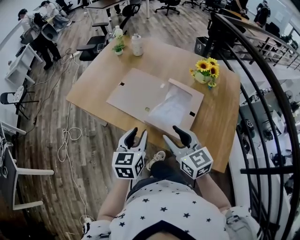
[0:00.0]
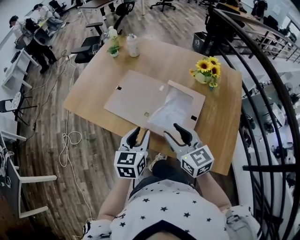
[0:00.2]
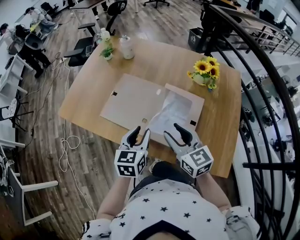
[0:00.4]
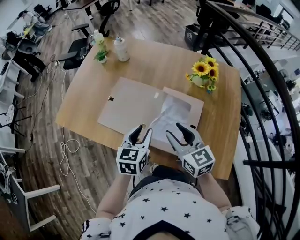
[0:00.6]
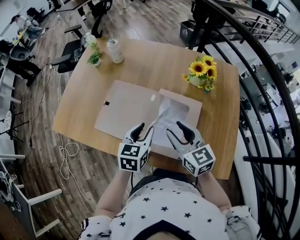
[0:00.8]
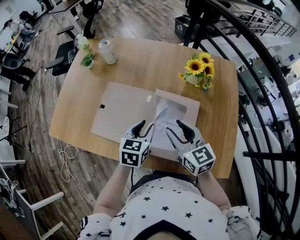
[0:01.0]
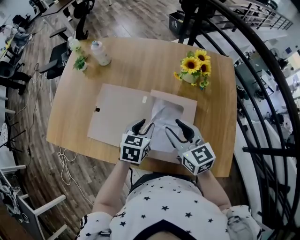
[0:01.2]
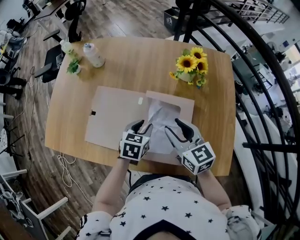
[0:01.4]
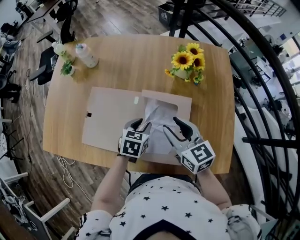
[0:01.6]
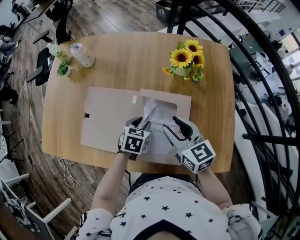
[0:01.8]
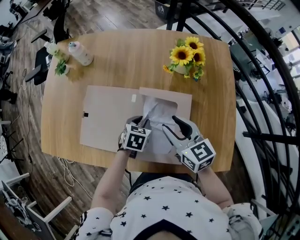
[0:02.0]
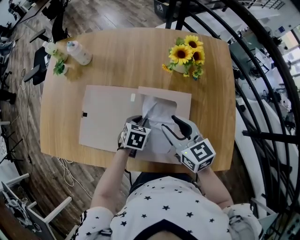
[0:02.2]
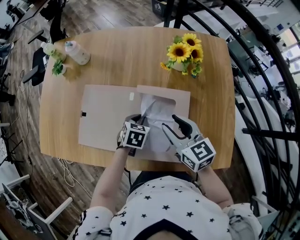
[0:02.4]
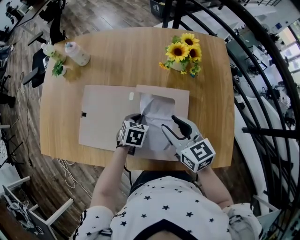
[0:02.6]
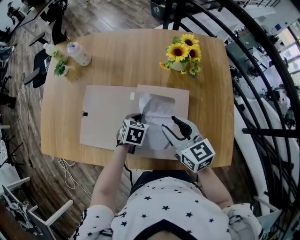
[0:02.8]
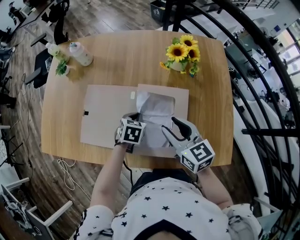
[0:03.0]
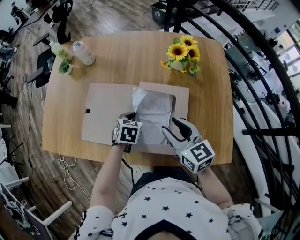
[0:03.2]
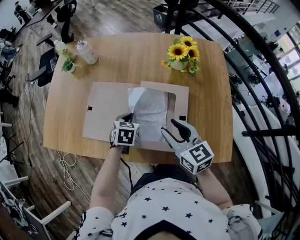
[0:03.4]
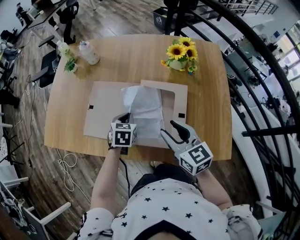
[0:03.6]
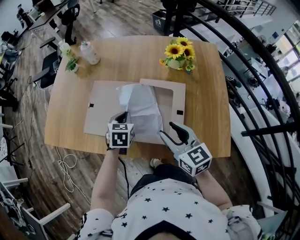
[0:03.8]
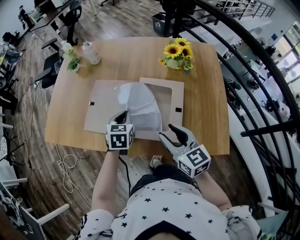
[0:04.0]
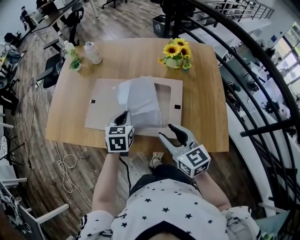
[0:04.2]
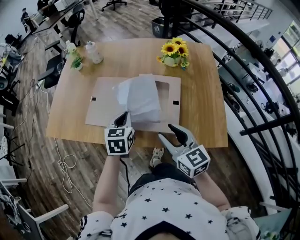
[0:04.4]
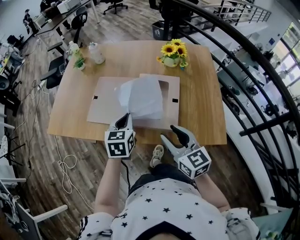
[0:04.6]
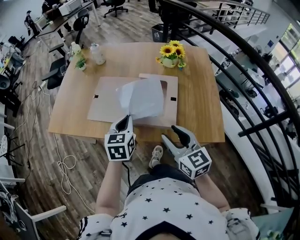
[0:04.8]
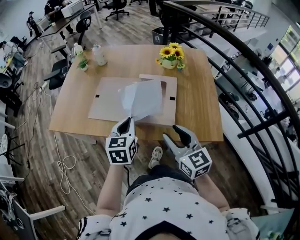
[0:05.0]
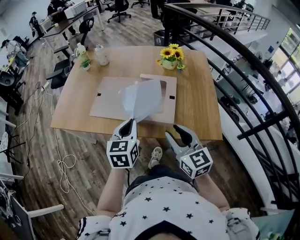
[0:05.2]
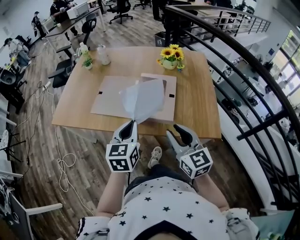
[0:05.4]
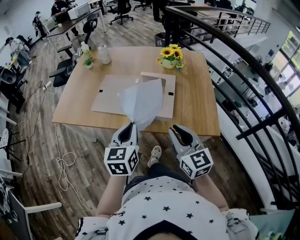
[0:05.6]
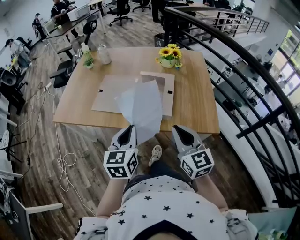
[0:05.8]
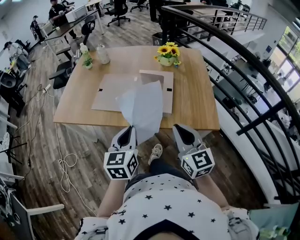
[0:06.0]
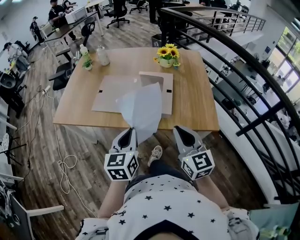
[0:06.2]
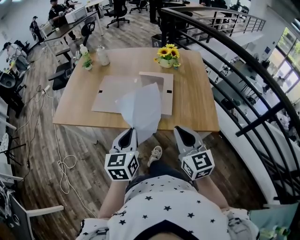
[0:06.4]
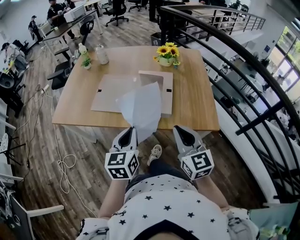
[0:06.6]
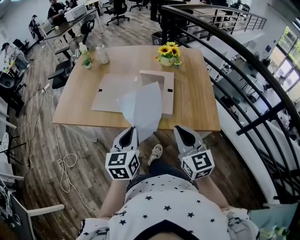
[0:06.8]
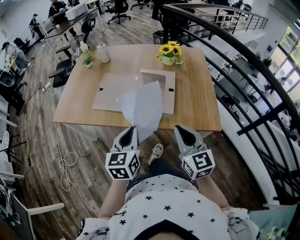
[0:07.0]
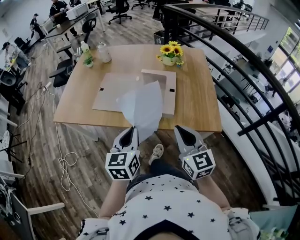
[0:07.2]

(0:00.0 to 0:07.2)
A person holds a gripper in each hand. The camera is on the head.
0:00.0 - 0:01.4: The left gripper moves forward, downward and to the right, roughly 30 cm, and turns by roughly 40 degrees; the right gripper goes some 20 cm forward, and turns by about 20 degrees.
0:01.4 - 0:02.8: The left gripper heads downward, covering roughly 5 cm, and closes up.
0:02.8 - 0:04.4: The left gripper is displaced upward, backward and to the left by roughly 20 cm, and swivels approximately 30 degrees; the right gripper heads backward, covering some 15 cm.
0:04.4 - 0:05.8: The right gripper goes approximately 15 cm backward, and closes. The left gripper shifts some 20 cm backward.
0:05.8 - 0:07.2: The grippers move only a little.

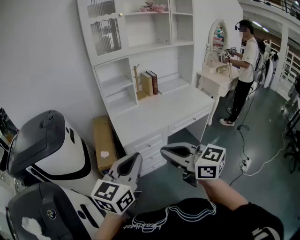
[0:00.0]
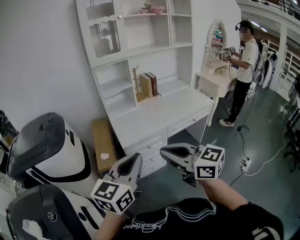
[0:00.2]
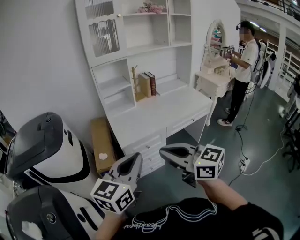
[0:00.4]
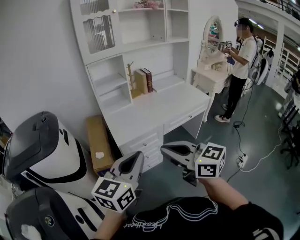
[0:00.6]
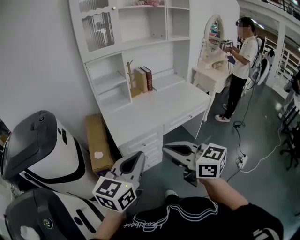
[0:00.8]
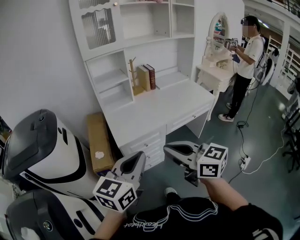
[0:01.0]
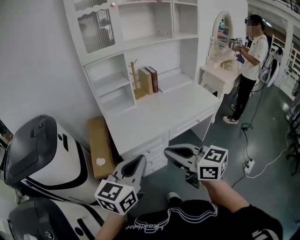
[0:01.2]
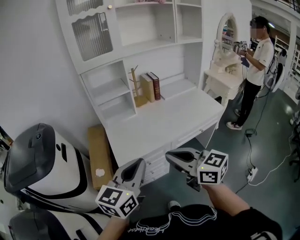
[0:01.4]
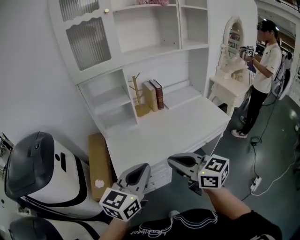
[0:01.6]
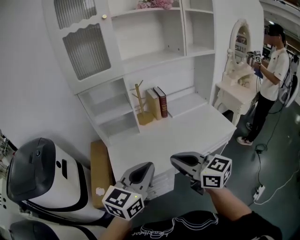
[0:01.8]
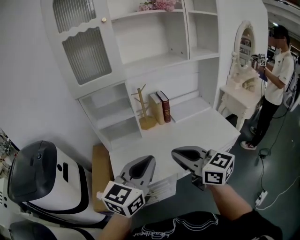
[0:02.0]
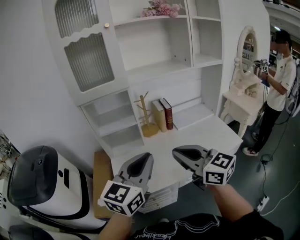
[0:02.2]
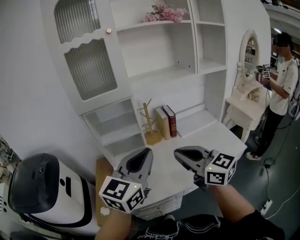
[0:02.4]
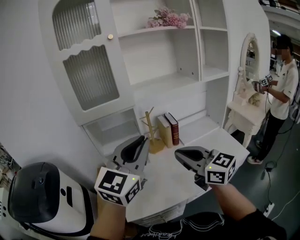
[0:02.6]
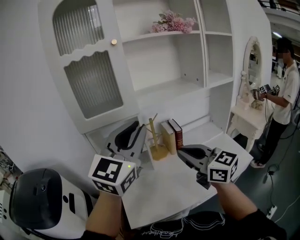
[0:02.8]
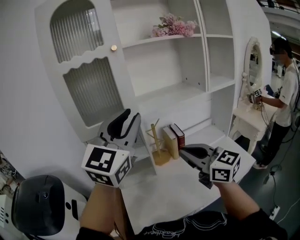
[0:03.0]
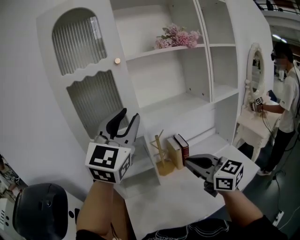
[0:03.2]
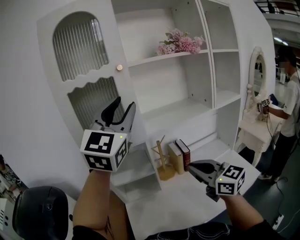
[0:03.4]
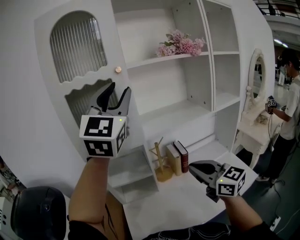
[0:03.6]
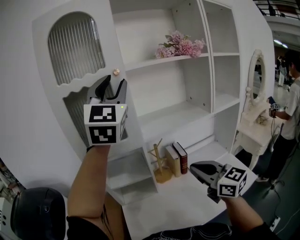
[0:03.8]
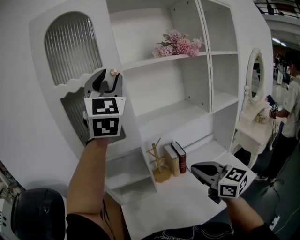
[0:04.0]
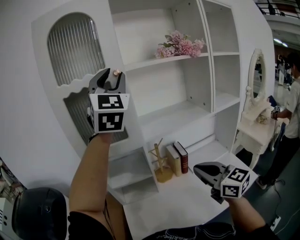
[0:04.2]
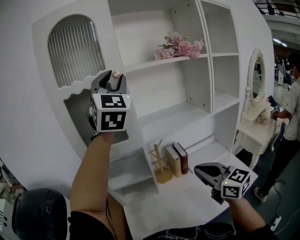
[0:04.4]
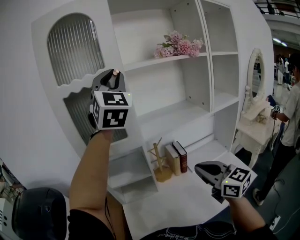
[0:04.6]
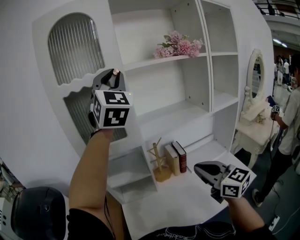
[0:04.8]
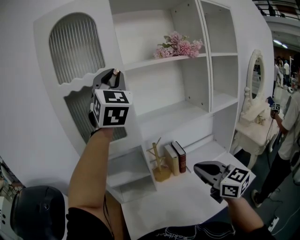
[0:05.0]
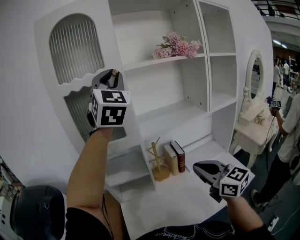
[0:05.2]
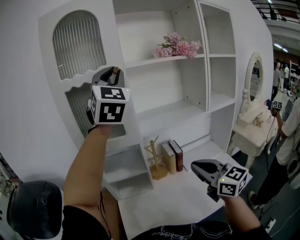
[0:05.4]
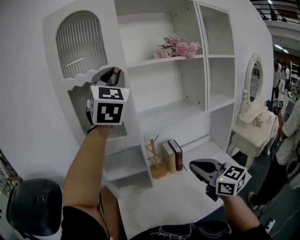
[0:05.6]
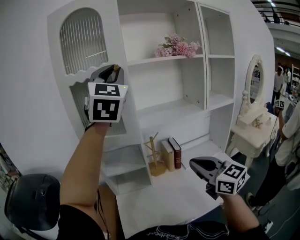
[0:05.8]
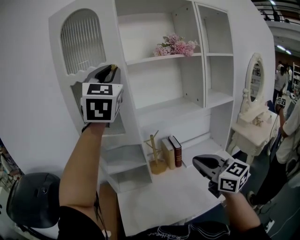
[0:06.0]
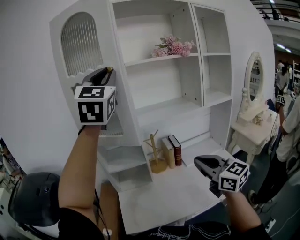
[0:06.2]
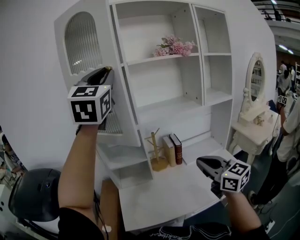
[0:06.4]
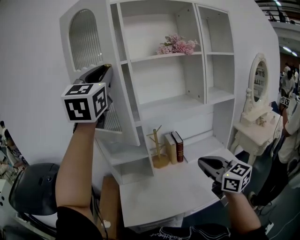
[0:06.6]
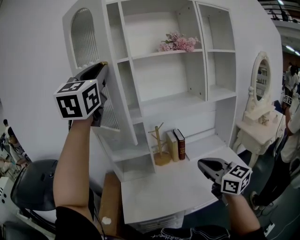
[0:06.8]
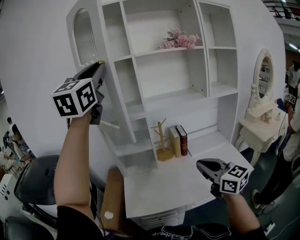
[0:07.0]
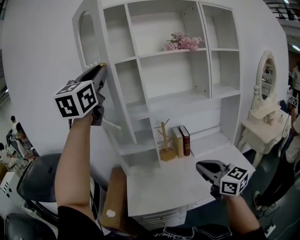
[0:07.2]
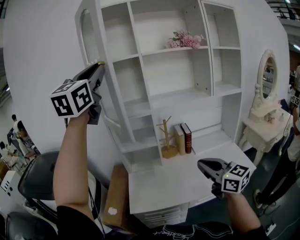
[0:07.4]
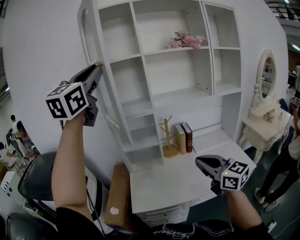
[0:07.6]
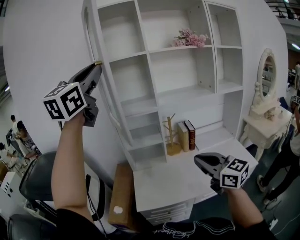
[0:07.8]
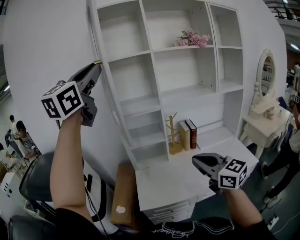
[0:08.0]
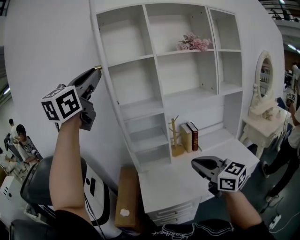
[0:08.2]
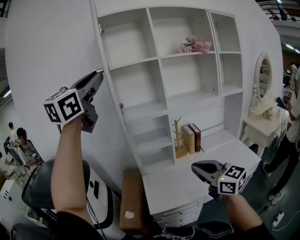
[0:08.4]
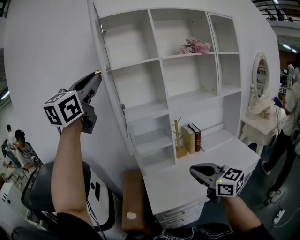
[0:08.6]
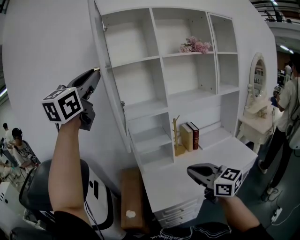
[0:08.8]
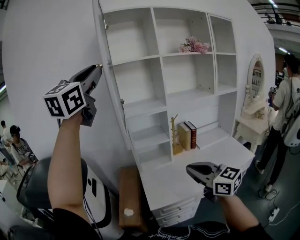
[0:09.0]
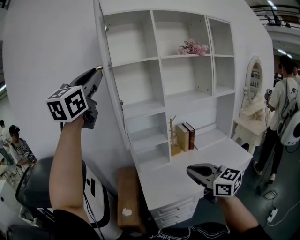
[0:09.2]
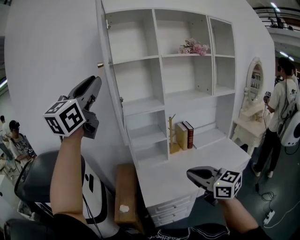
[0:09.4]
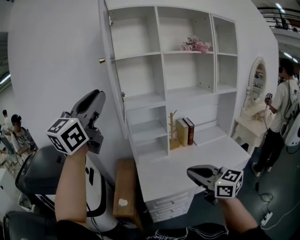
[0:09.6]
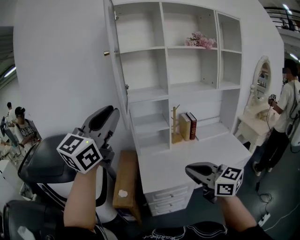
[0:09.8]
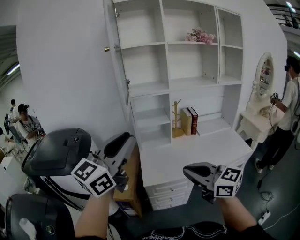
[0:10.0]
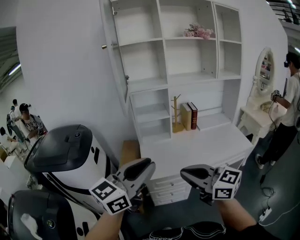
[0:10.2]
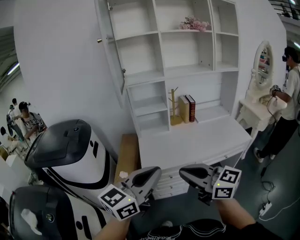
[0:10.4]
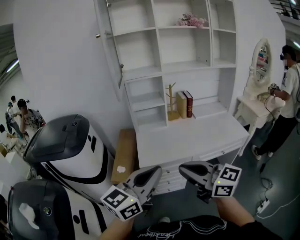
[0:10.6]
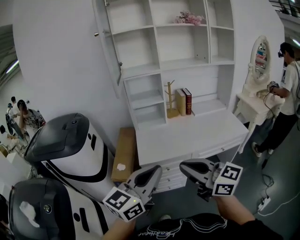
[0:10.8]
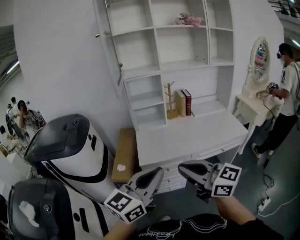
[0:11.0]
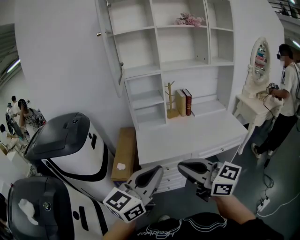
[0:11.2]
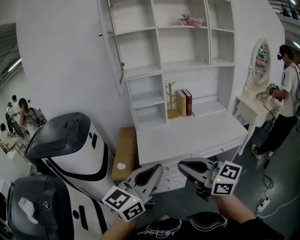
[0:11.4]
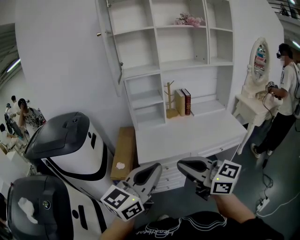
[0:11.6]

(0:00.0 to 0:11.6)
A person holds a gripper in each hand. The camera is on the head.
0:00.0 - 0:01.4: The grippers both shift forward and to the right by roughly 20 cm.
0:01.4 - 0:02.8: The left gripper heads forward and upward, covering about 40 cm, and swivels some 30 degrees, while the right gripper heads forward, covering approximately 35 cm.
0:02.8 - 0:04.4: The left gripper travels upward and forward by some 30 cm, changes its angle by some 40 degrees, and opens its fingers, while the right gripper heads to the right, covering some 5 cm.
0:04.4 - 0:05.8: The left gripper goes approximately 10 cm backward.
0:05.8 - 0:07.2: The left gripper is displaced backward and to the left by about 15 cm, while the right gripper moves backward and downward, some 10 cm.
0:07.2 - 0:08.8: The grippers both shift to the left by about 20 cm.
0:08.8 - 0:10.2: The right gripper travels backward by roughly 15 cm, while the left gripper moves downward and backward, roughly 40 cm, and turns by approximately 30 degrees.
0:10.2 - 0:11.6: The left gripper is displaced backward and downward by approximately 10 cm; the right gripper goes approximately 10 cm backward.

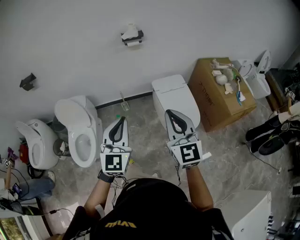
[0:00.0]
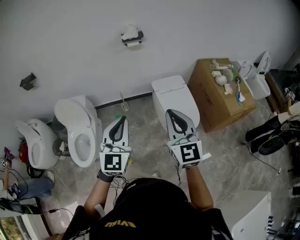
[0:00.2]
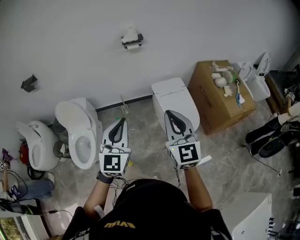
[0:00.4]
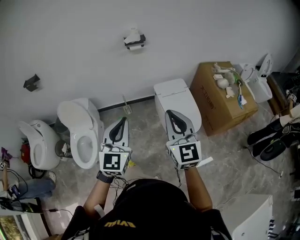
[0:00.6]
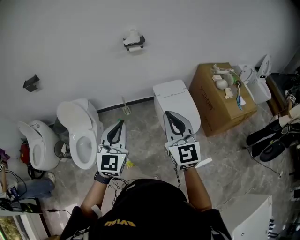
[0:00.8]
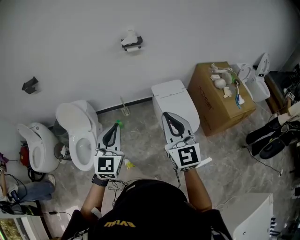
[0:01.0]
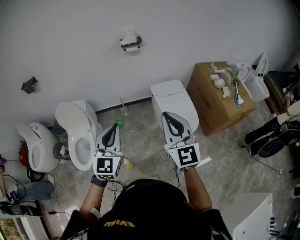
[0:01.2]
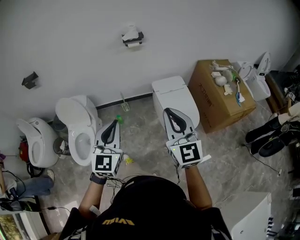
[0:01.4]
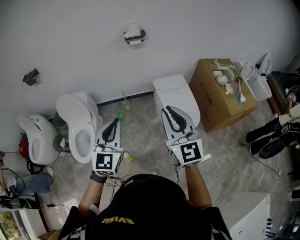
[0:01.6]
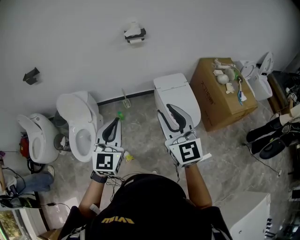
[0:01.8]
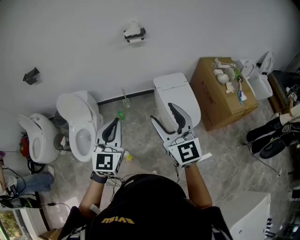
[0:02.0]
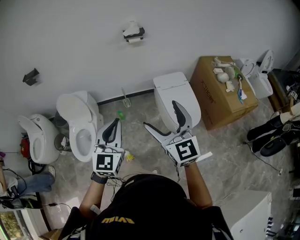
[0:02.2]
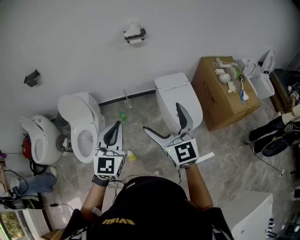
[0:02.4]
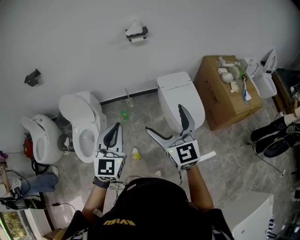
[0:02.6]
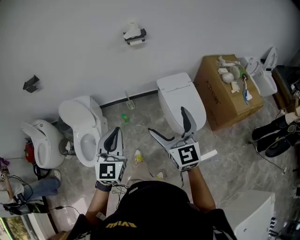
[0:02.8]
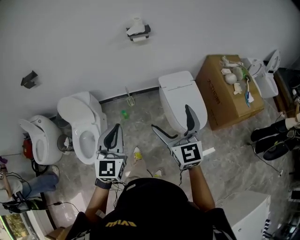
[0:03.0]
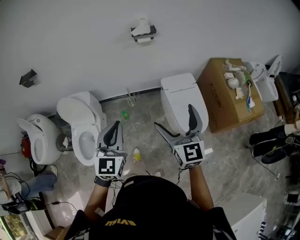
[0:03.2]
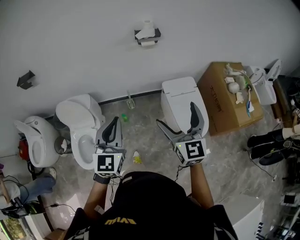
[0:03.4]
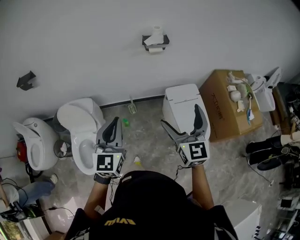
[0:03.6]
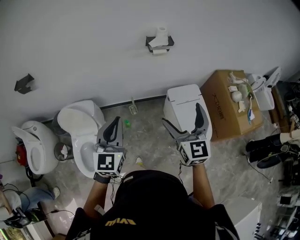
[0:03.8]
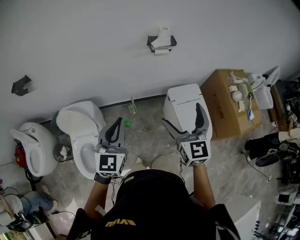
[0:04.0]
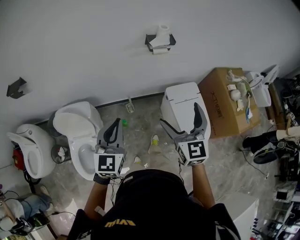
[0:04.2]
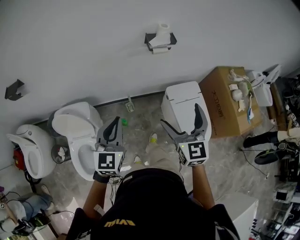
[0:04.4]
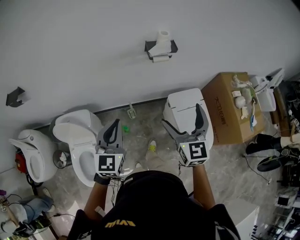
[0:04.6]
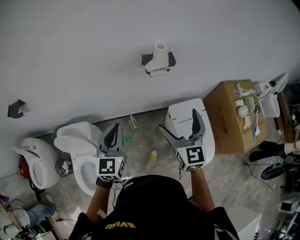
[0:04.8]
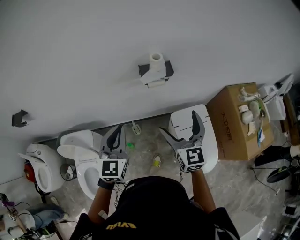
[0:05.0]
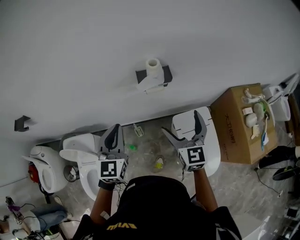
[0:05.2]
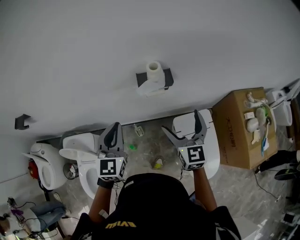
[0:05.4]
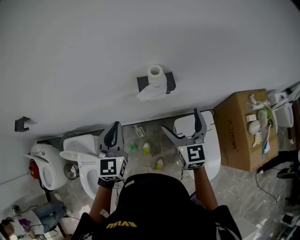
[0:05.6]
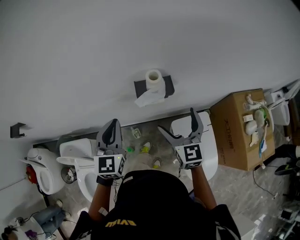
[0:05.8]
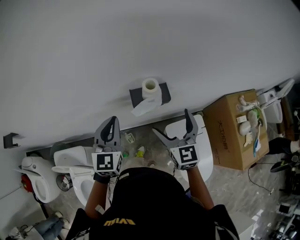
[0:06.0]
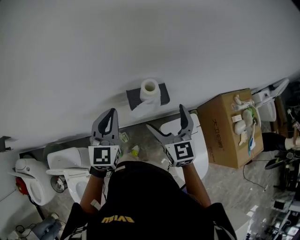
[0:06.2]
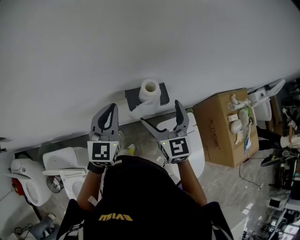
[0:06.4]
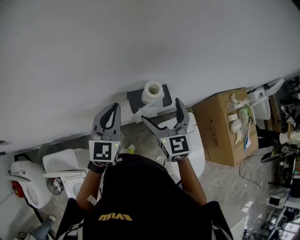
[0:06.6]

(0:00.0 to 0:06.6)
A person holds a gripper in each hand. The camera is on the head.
0:00.0 - 0:01.6: There are only small adjustments of the grippers.
0:01.6 - 0:03.2: Both grippers move forward, some 10 cm. The right gripper opens its fingers.
0:03.2 - 0:05.0: The two grippers go roughly 35 cm forward.
0:05.0 - 0:06.6: Both grippers travel together forward, about 25 cm.
